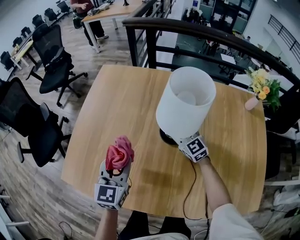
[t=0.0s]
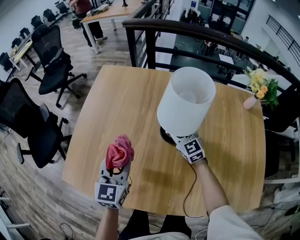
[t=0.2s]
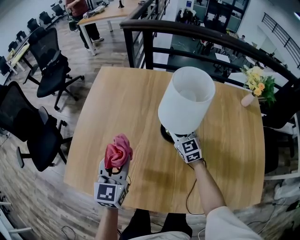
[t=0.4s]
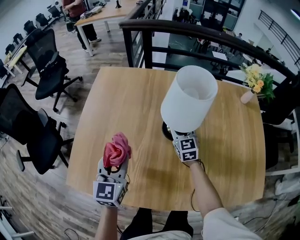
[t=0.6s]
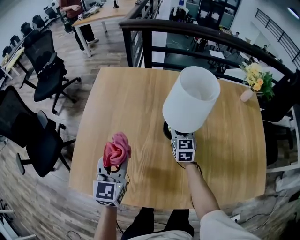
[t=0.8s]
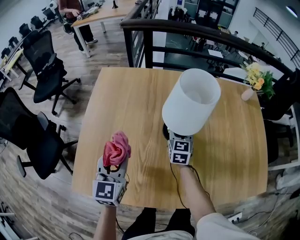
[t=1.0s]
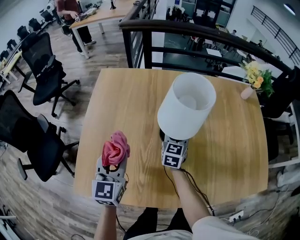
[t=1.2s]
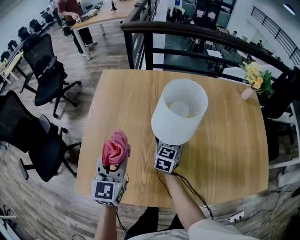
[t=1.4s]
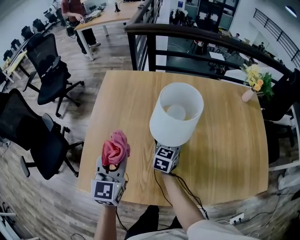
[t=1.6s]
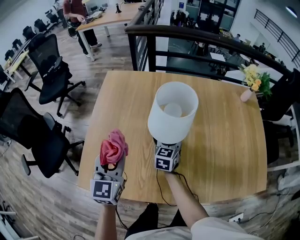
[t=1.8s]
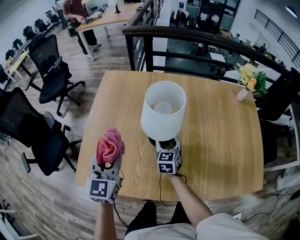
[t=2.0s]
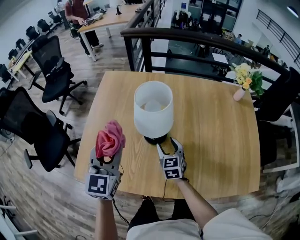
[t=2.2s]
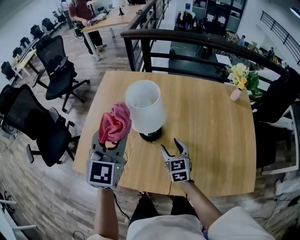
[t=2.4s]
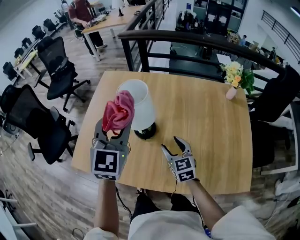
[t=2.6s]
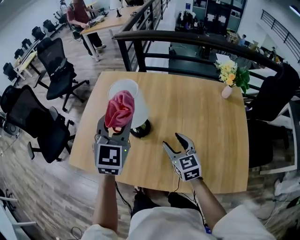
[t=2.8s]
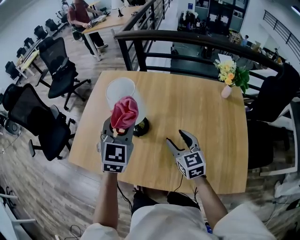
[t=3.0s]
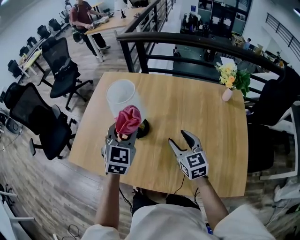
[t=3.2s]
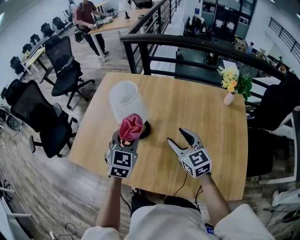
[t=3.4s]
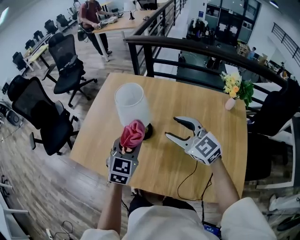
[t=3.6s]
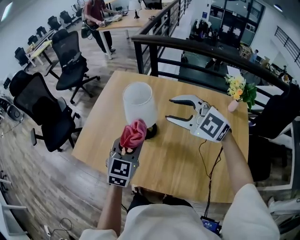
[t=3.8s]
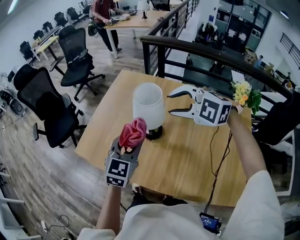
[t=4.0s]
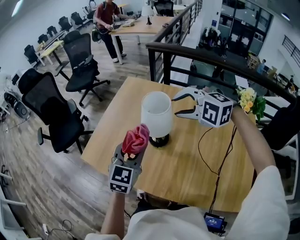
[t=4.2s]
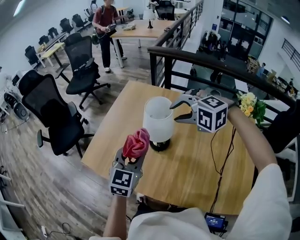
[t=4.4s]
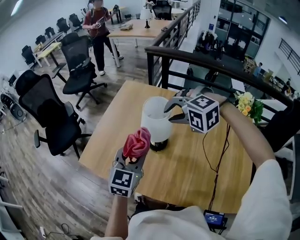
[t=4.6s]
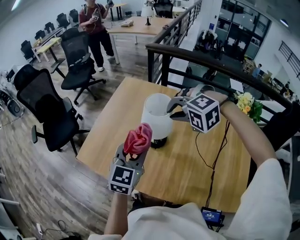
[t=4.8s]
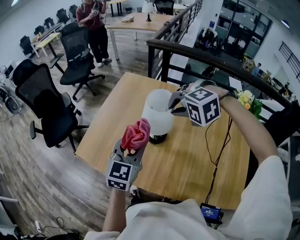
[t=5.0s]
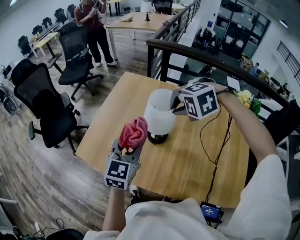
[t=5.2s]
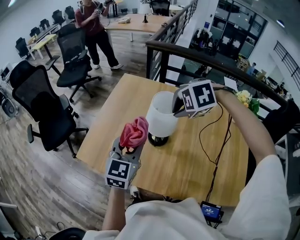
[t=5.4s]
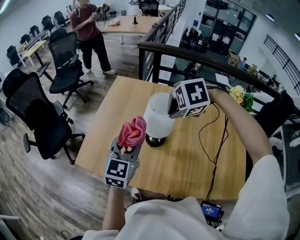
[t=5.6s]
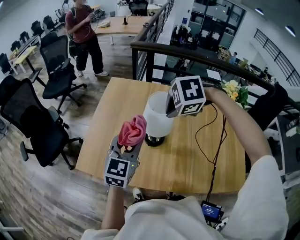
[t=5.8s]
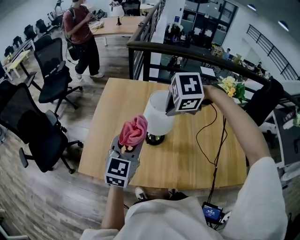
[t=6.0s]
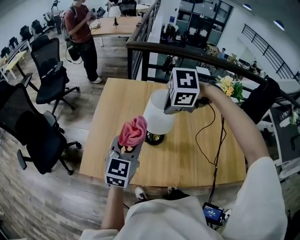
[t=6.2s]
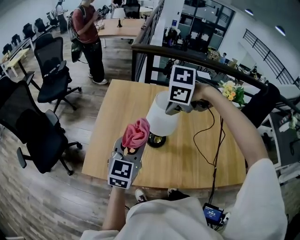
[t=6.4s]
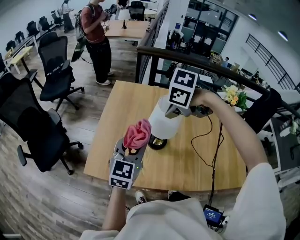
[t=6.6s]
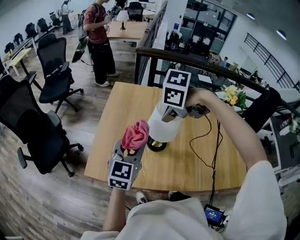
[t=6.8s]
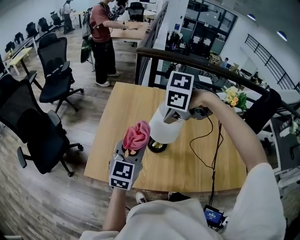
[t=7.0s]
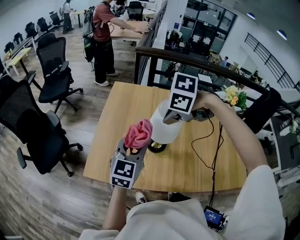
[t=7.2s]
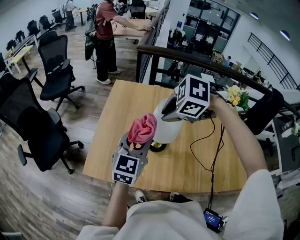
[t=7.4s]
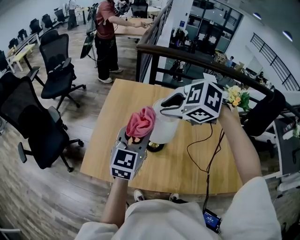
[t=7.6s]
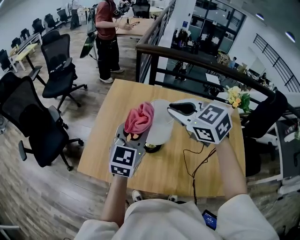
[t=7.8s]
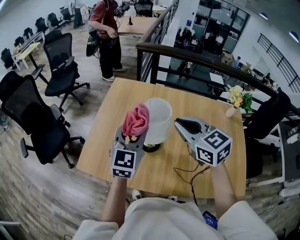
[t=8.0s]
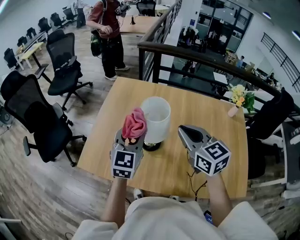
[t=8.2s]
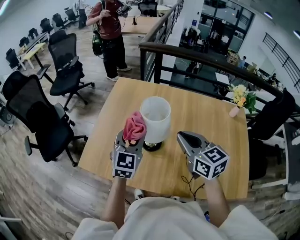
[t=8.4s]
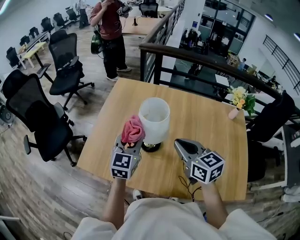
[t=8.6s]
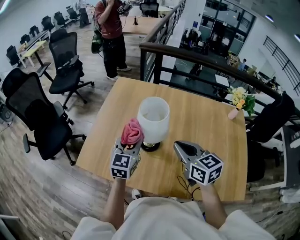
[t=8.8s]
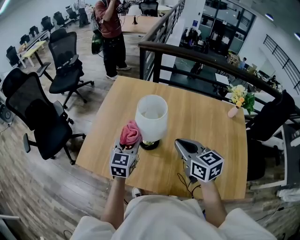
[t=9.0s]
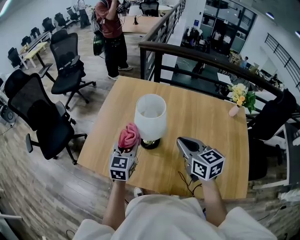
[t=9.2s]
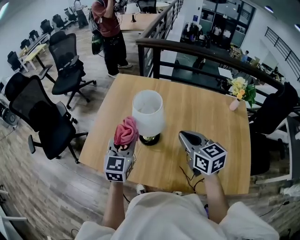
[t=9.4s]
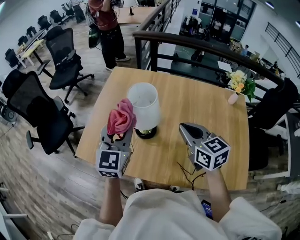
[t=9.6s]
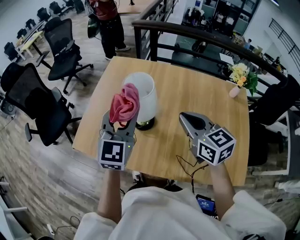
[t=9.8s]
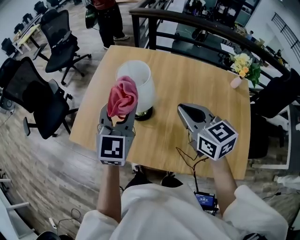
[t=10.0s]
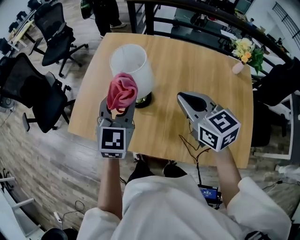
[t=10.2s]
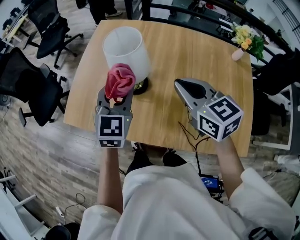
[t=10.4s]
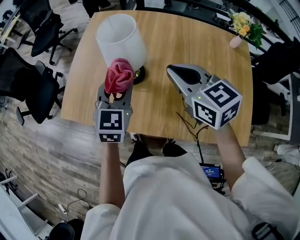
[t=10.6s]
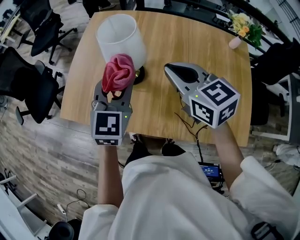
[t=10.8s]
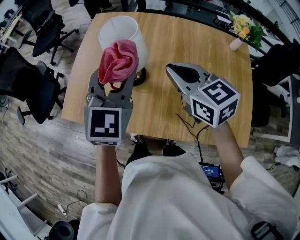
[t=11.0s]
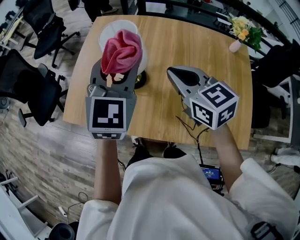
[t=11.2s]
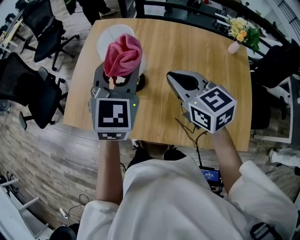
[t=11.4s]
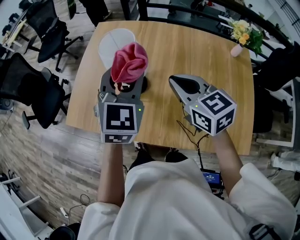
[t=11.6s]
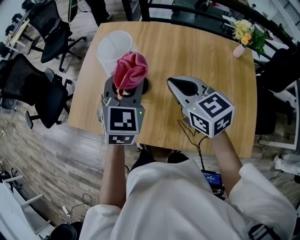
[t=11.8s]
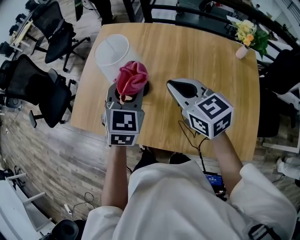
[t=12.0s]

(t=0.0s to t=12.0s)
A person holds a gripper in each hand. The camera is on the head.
t=0.0s - t=1.6s: The right gripper shifts by roughly 10 cm, and swivels about 60 degrees. The left gripper ends up some 10 cm from where it was.
t=1.6s - t=3.0s: The right gripper travels to the right, upward and backward by some 25 cm, and changes its angle by some 40 degrees. The left gripper moves to the right and upward, approximately 25 cm, and rotates about 20 degrees.
t=3.0s - t=4.4s: The right gripper moves upward, forward and to the left, approximately 25 cm, and rotates around the line of its fingers by approximately 80 degrees, counterclockwise from behind. Meanwhile the left gripper moves to the left, approximately 10 cm.
t=4.4s - t=6.0s: The right gripper shifts by about 10 cm, rotates about 50 degrees, and closes; the left gripper moves roughly 5 cm.
t=6.0s - t=7.6s: The right gripper changes place by approximately 10 cm, and changes its angle by approximately 30 degrees.
t=7.6s - t=9.0s: The left gripper is displaced downward by roughly 15 cm; the right gripper moves to the right, downward and backward, roughly 20 cm, and tips its fingers upward by approximately 30 degrees.
t=9.0s - t=10.4s: The right gripper travels to the right by about 5 cm. The left gripper heads to the right and upward, covering about 10 cm.
t=10.4s - t=12.0s: The left gripper travels to the right by some 5 cm, and reaches some 10 cm upward, then returns.

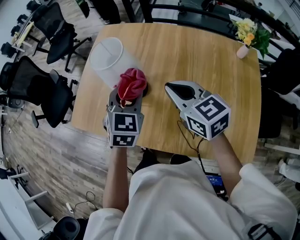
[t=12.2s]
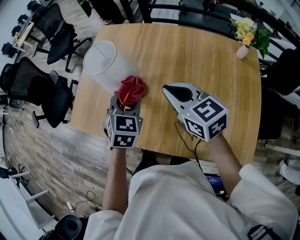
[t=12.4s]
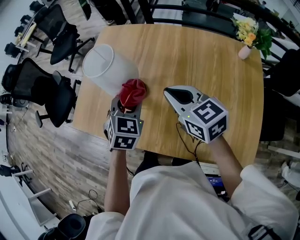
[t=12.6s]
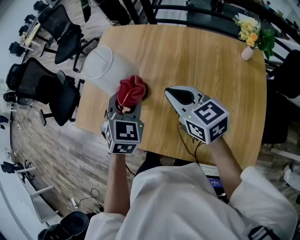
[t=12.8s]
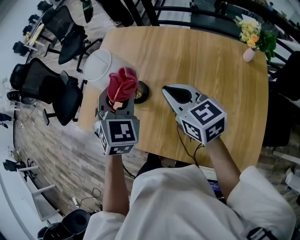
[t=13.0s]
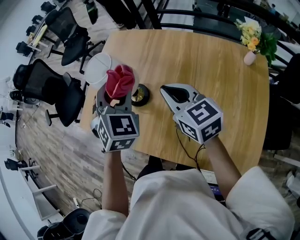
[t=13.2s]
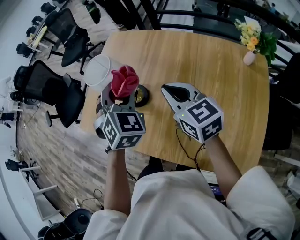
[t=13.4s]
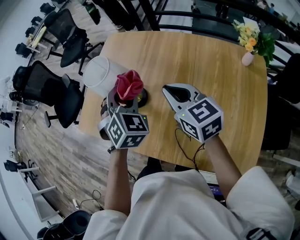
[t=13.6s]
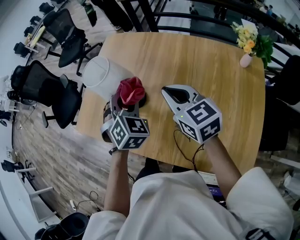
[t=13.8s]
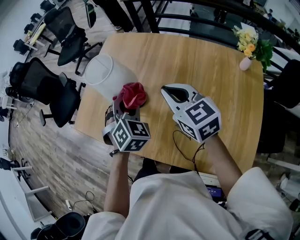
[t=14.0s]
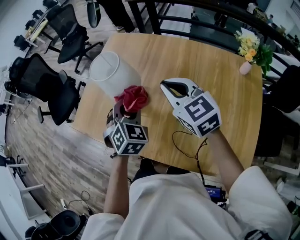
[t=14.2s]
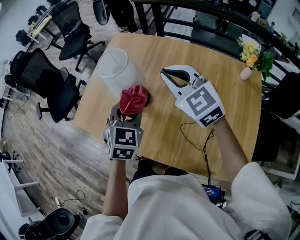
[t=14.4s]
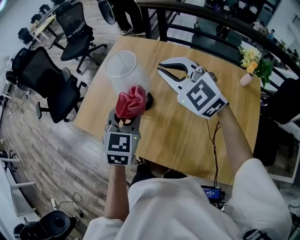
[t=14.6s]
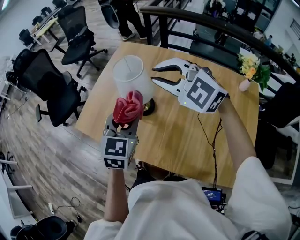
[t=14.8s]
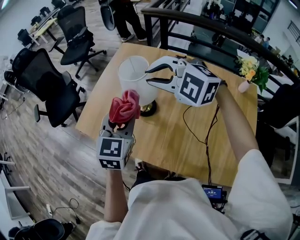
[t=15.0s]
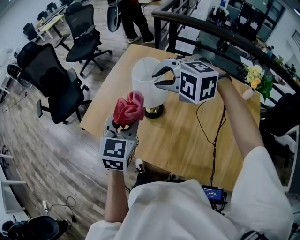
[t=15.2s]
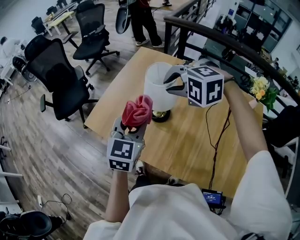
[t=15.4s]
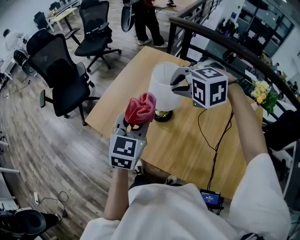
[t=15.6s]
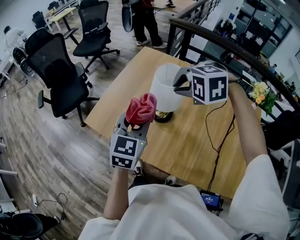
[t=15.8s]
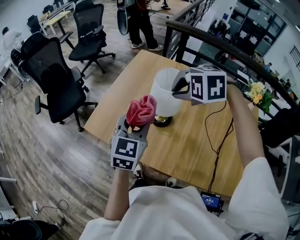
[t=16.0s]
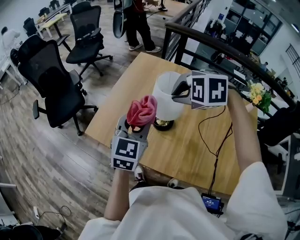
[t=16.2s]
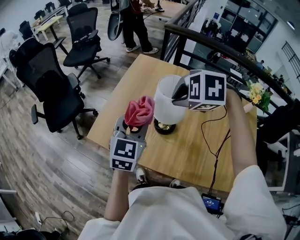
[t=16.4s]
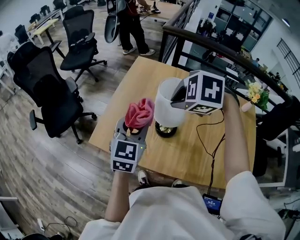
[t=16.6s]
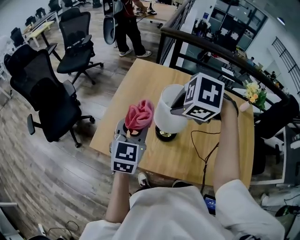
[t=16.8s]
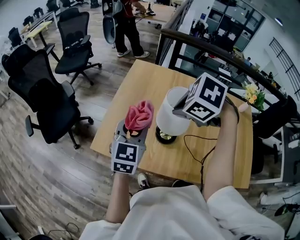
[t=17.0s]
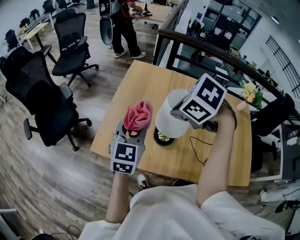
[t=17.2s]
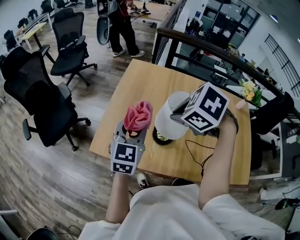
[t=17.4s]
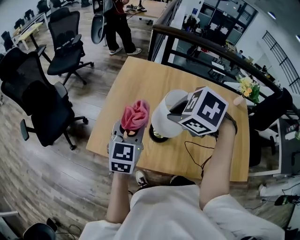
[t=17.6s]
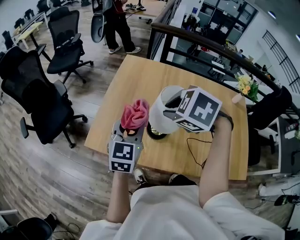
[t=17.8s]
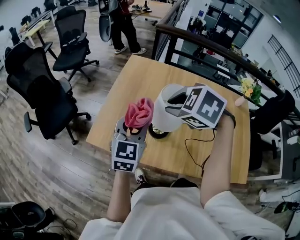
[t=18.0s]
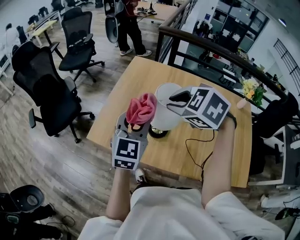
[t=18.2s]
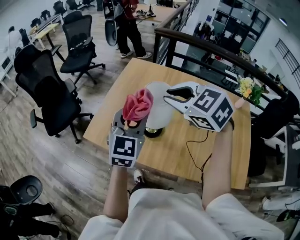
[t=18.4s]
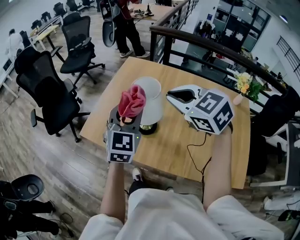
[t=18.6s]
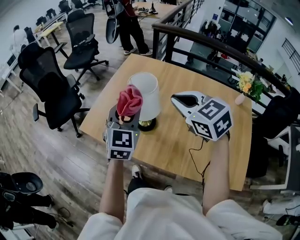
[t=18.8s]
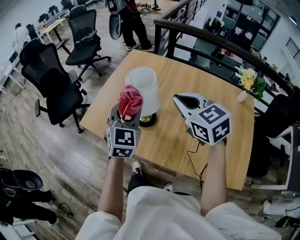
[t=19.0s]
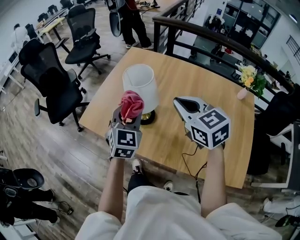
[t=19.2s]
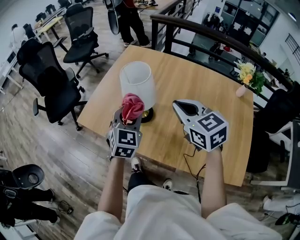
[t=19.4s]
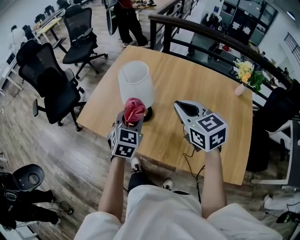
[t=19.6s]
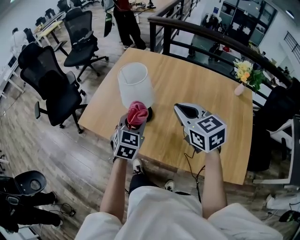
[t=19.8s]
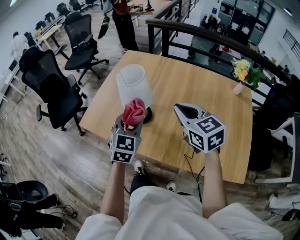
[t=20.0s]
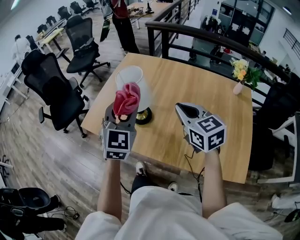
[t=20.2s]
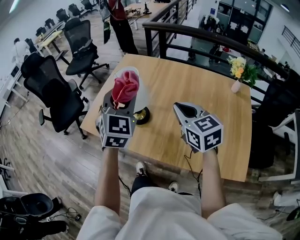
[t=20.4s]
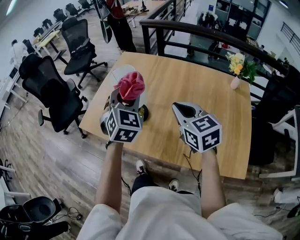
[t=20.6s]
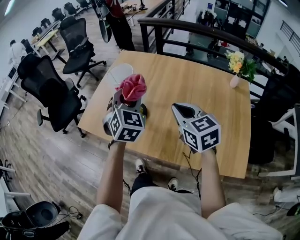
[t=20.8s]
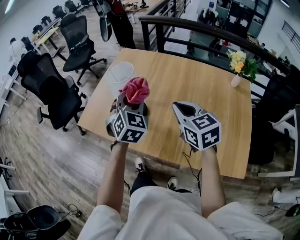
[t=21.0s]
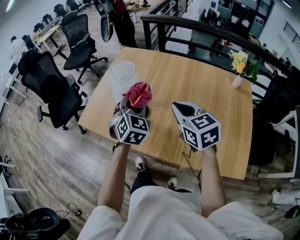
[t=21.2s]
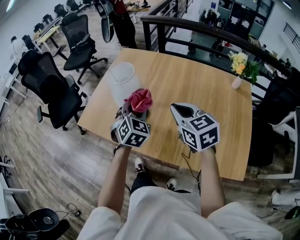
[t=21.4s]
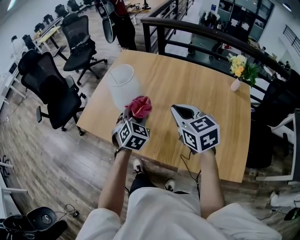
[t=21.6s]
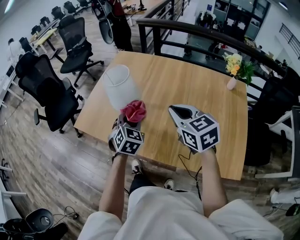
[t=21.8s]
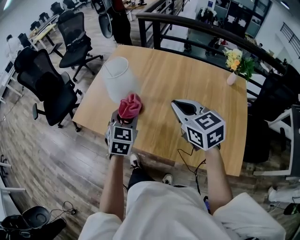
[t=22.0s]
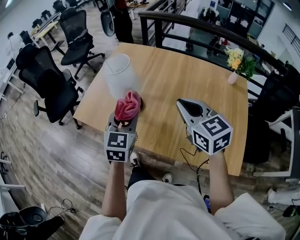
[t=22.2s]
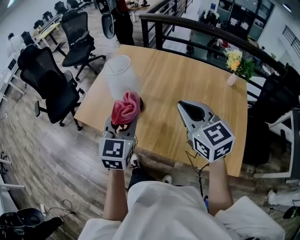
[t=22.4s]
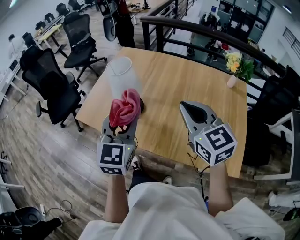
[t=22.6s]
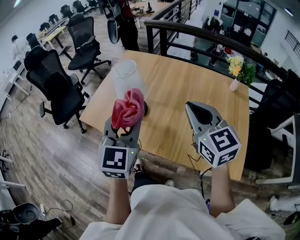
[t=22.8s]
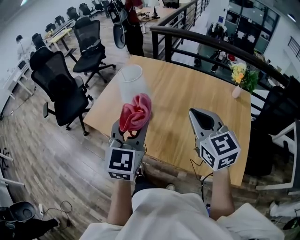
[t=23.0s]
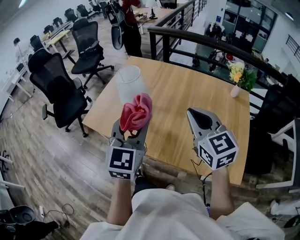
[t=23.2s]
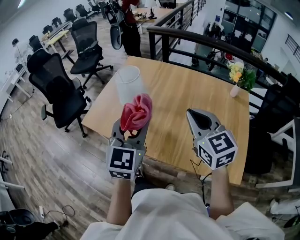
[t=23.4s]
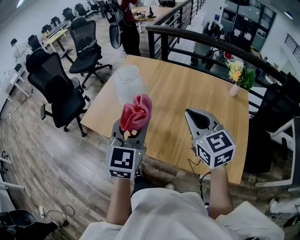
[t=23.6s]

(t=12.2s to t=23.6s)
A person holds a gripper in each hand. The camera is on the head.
t=12.2s - t=13.6s: The right gripper shifts by some 5 cm. Meanwhile the left gripper swings up and down, about 10 cm each way, with 2 reversals, and turns by some 30 degrees.
t=13.6s - t=15.0s: The left gripper goes roughly 10 cm to the left, and changes its angle by approximately 40 degrees, while the right gripper shifts roughly 15 cm to the left, upward and forward, and twists roughly 70 degrees counterclockwise, seen from behind.
t=15.0s - t=16.4s: The right gripper goes approximately 10 cm to the left, and angles its fingers downward, by approximately 40 degrees, while the left gripper is displaced to the left and forward by roughly 10 cm.
t=16.4s - t=17.8s: The right gripper changes its angle by approximately 30 degrees.
t=17.8s - t=19.4s: Both grippers travel together to the right and backward, roughly 15 cm. The left gripper swivels about 20 degrees, while the right gripper tips its fingers upward by some 40 degrees.
t=19.4s - t=20.8s: The left gripper moves up and down over about 15 cm, changing direction 2 times, while the right gripper is displaced to the right by about 5 cm.
t=20.8s - t=22.2s: The left gripper travels backward by approximately 10 cm, and swivels about 20 degrees.
t=22.2s - t=23.6s: The left gripper goes roughly 10 cm upward and backward.
